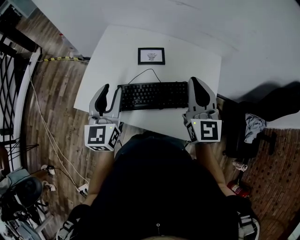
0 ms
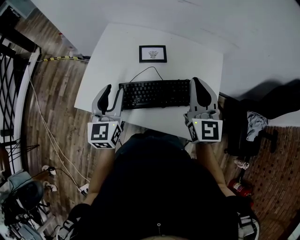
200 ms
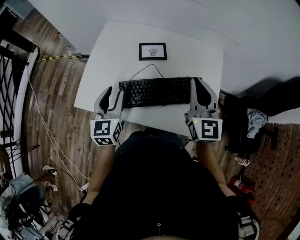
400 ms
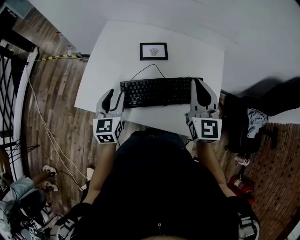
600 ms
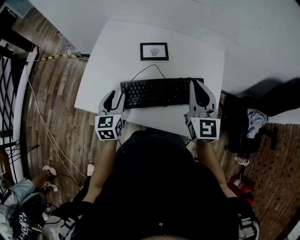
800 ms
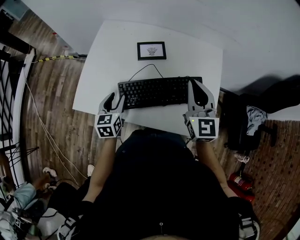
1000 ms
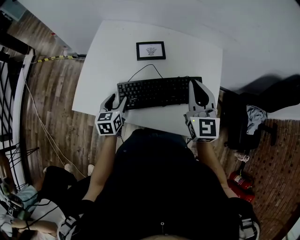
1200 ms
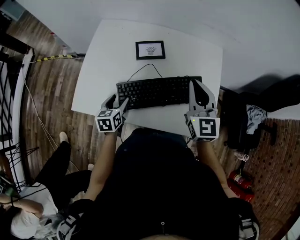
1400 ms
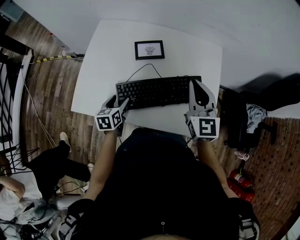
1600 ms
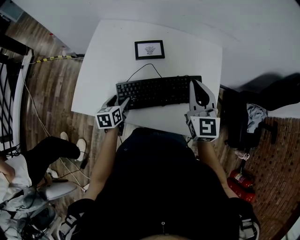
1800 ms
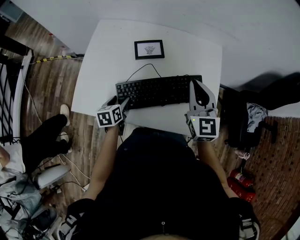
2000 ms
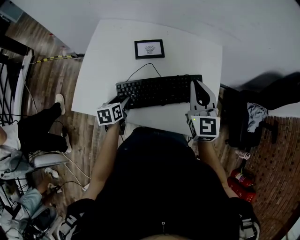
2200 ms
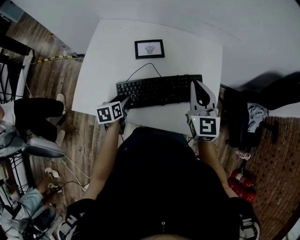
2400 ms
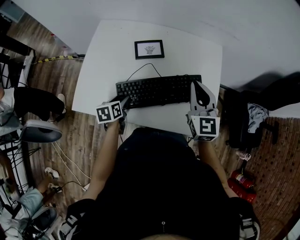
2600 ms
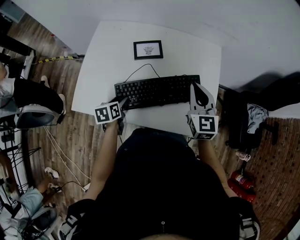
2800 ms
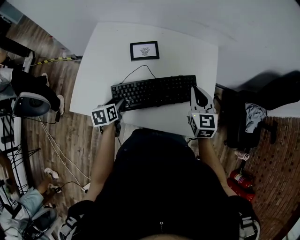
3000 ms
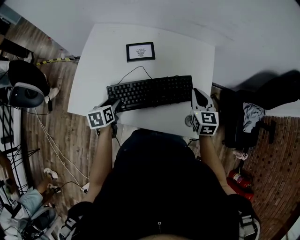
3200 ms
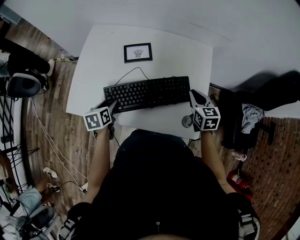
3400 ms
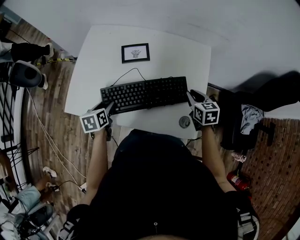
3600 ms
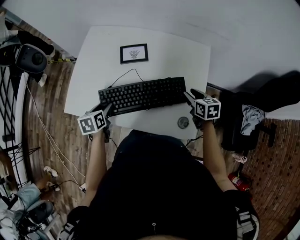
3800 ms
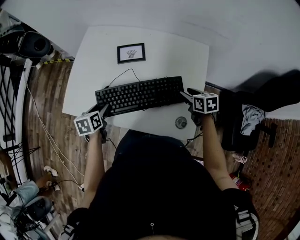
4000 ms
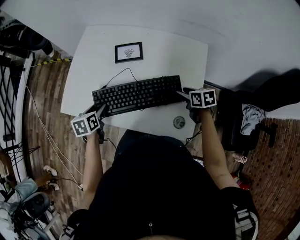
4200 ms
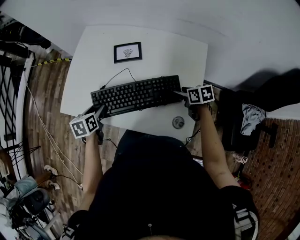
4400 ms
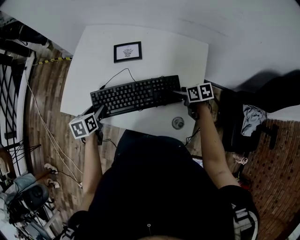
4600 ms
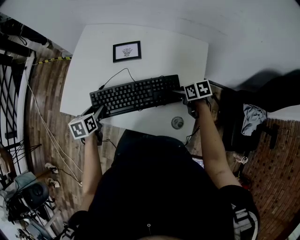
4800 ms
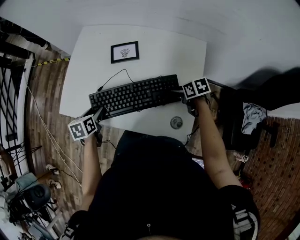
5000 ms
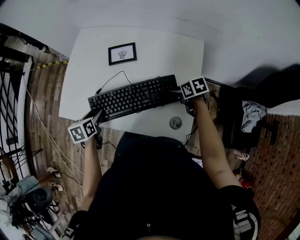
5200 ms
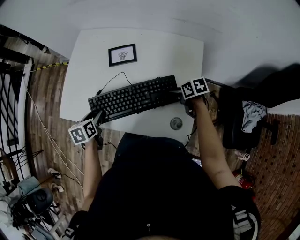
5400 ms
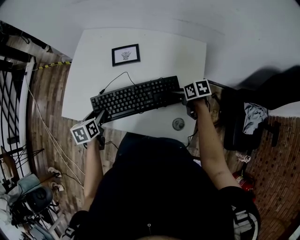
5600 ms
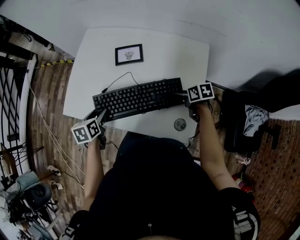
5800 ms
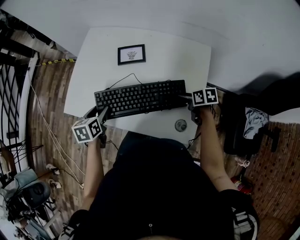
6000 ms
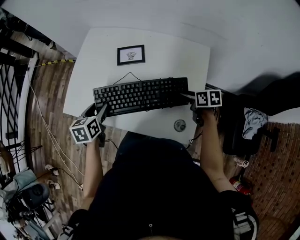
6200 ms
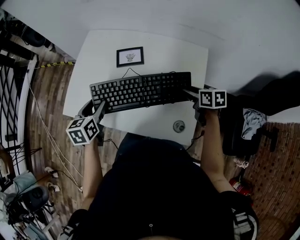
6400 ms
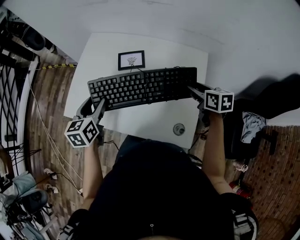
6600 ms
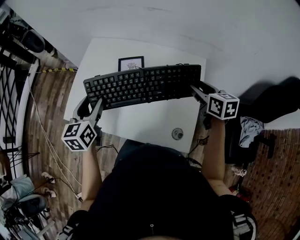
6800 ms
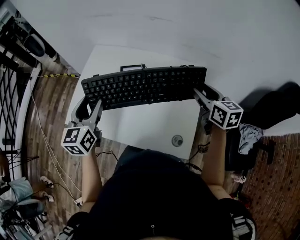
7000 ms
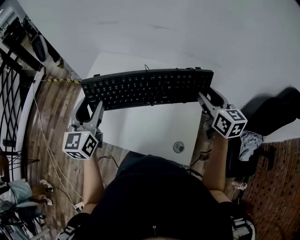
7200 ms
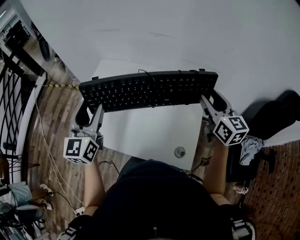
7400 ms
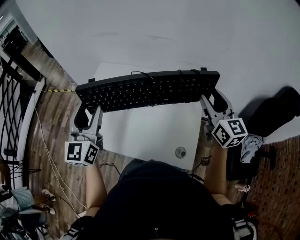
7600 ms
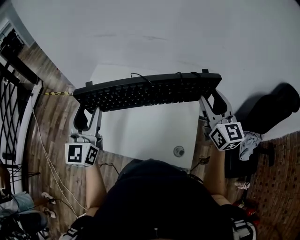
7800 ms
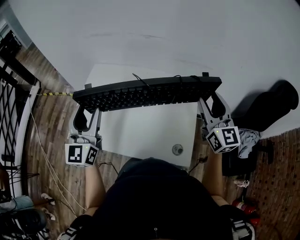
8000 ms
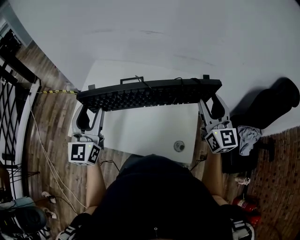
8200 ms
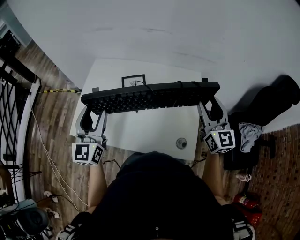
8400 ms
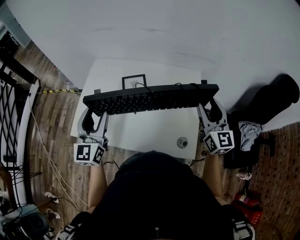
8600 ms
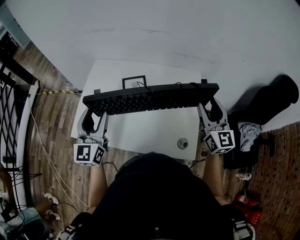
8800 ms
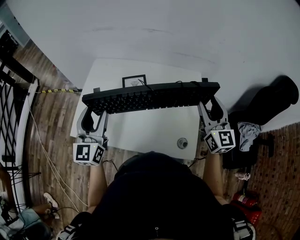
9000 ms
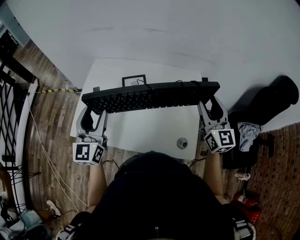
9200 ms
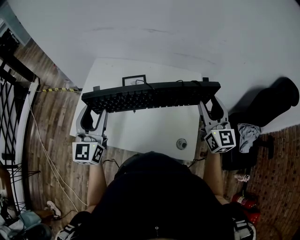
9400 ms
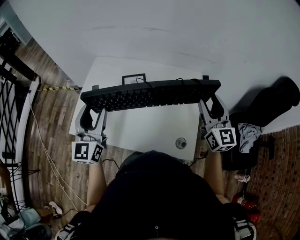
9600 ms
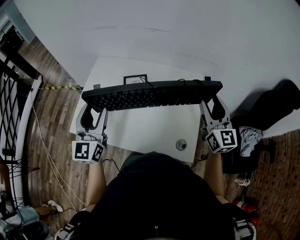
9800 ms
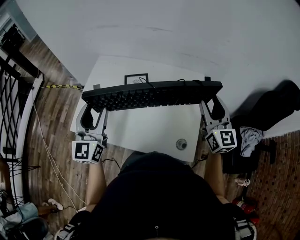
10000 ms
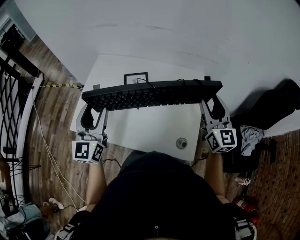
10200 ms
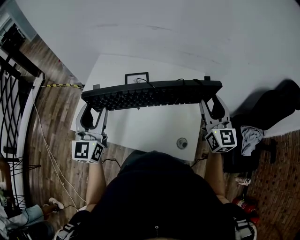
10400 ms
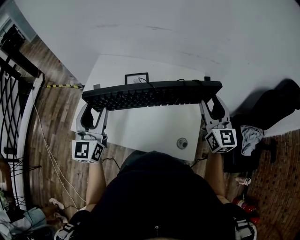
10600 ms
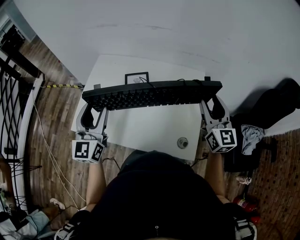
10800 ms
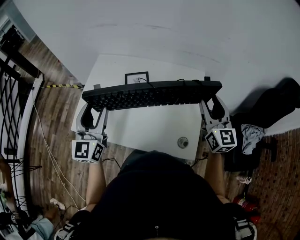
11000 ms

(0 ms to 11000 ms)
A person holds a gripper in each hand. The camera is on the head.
0 ms - 1600 ms: The left gripper travels downward by about 25 cm, points its fingers roughly 30 degrees further downward, and opens up. The right gripper is displaced downward by roughly 5 cm.
1600 ms - 3200 ms: The right gripper moves to the right and downward, about 15 cm.
3200 ms - 4800 ms: The right gripper heads downward, covering approximately 15 cm, turns by about 50 degrees, and opens up.
4800 ms - 6200 ms: The left gripper heads upward, covering roughly 5 cm.
6200 ms - 7800 ms: Both grippers move upward, roughly 30 cm. The left gripper points its fingers approximately 50 degrees further upward. The right gripper tilts its fingers about 50 degrees upward.
7800 ms - 9400 ms: Both grippers move downward, about 5 cm.
9400 ms - 11000 ms: The two grippers keep their place.

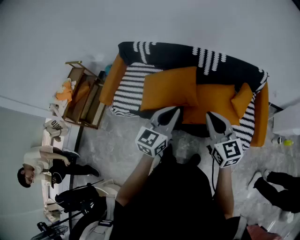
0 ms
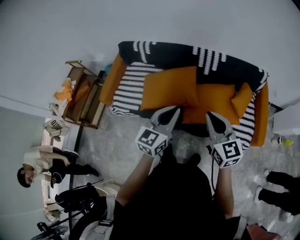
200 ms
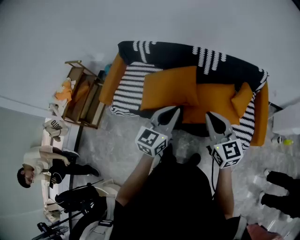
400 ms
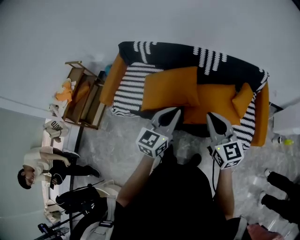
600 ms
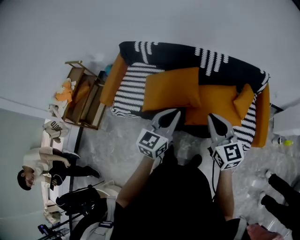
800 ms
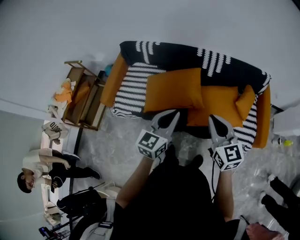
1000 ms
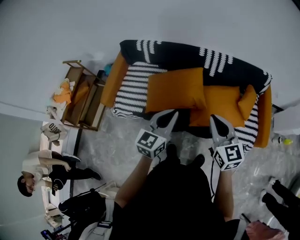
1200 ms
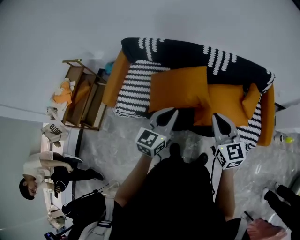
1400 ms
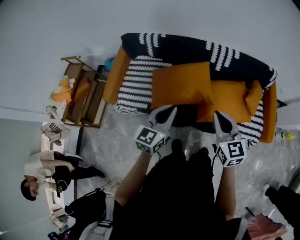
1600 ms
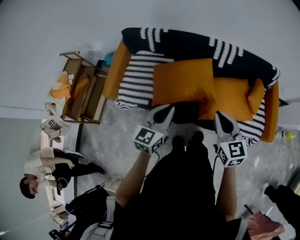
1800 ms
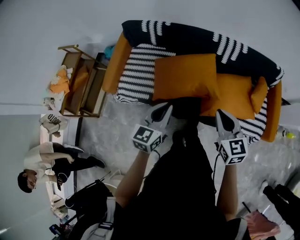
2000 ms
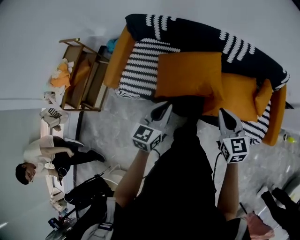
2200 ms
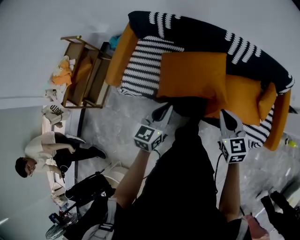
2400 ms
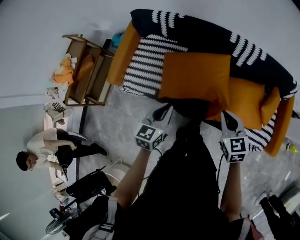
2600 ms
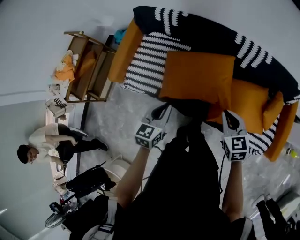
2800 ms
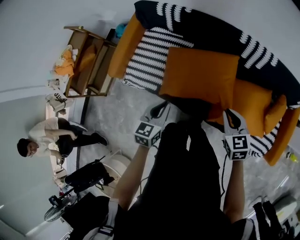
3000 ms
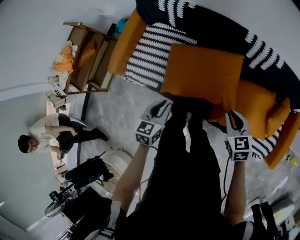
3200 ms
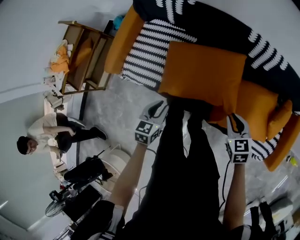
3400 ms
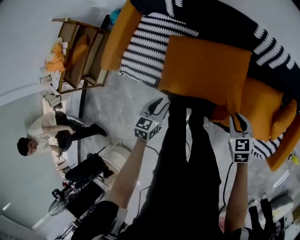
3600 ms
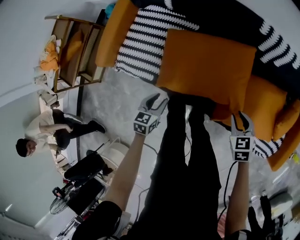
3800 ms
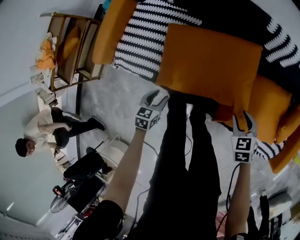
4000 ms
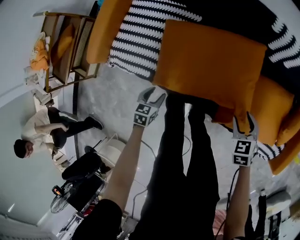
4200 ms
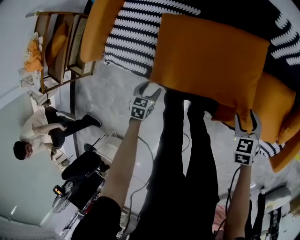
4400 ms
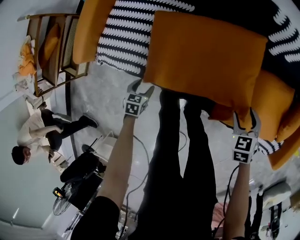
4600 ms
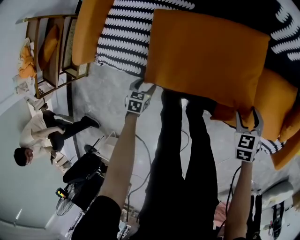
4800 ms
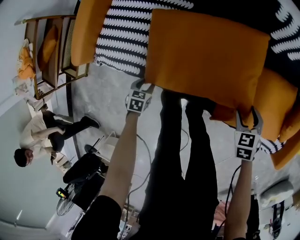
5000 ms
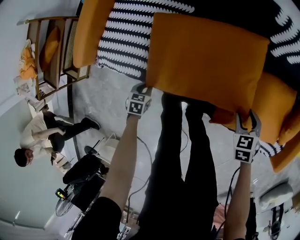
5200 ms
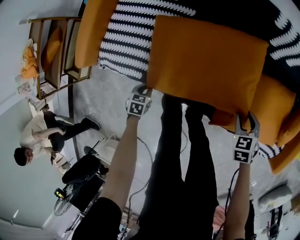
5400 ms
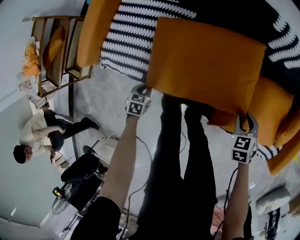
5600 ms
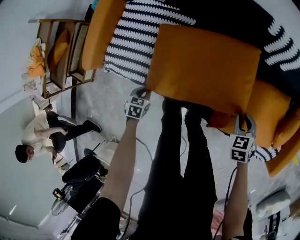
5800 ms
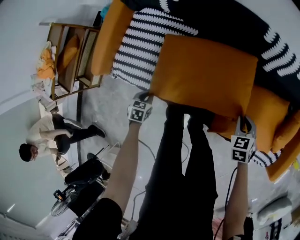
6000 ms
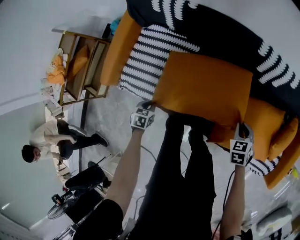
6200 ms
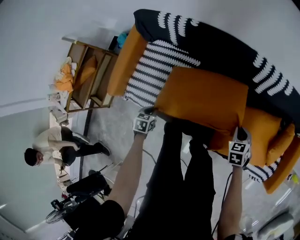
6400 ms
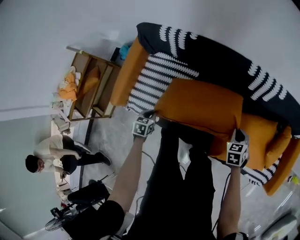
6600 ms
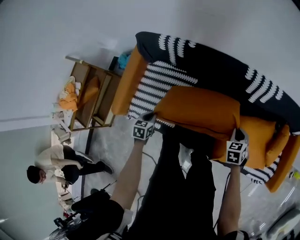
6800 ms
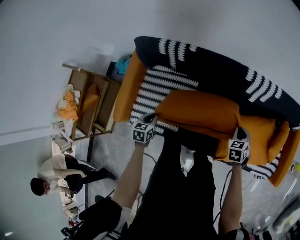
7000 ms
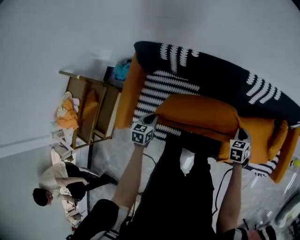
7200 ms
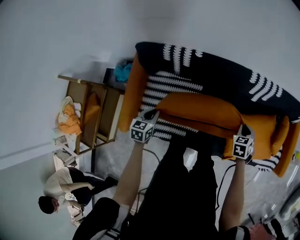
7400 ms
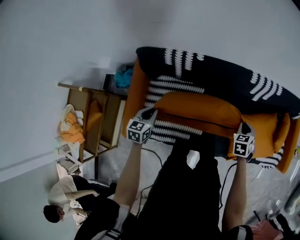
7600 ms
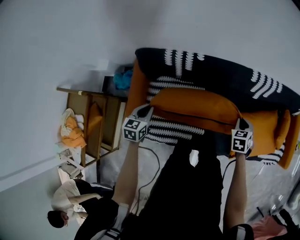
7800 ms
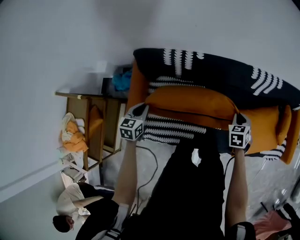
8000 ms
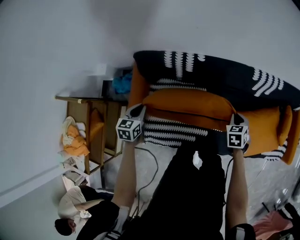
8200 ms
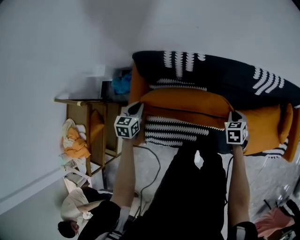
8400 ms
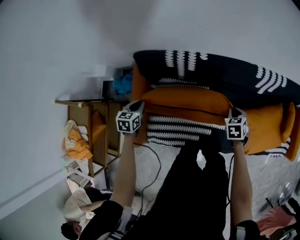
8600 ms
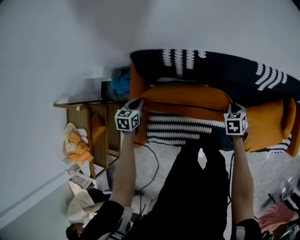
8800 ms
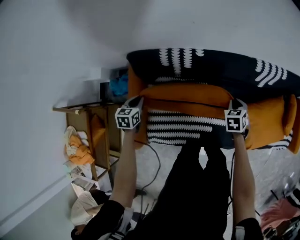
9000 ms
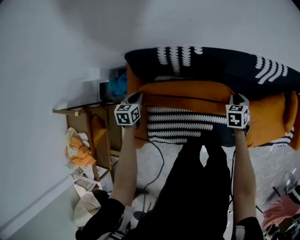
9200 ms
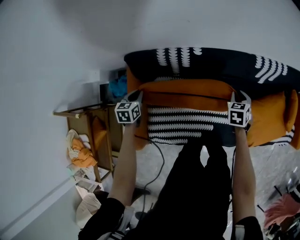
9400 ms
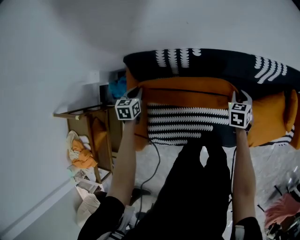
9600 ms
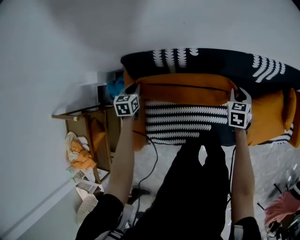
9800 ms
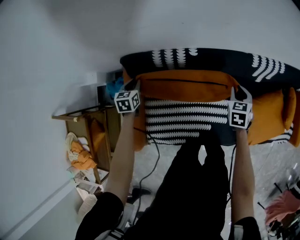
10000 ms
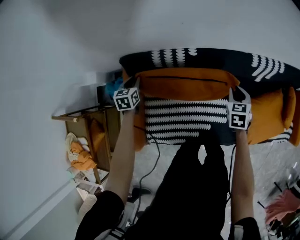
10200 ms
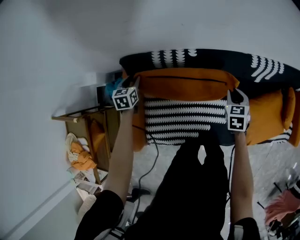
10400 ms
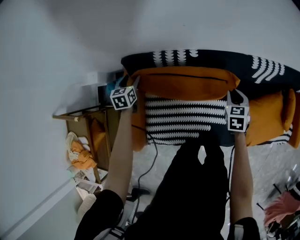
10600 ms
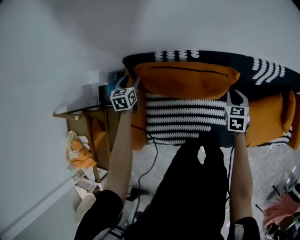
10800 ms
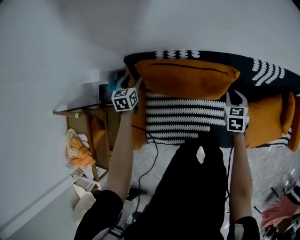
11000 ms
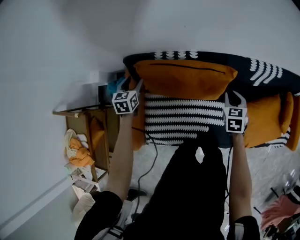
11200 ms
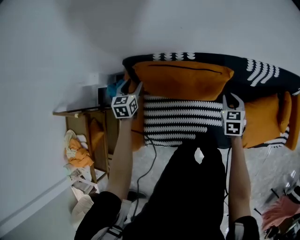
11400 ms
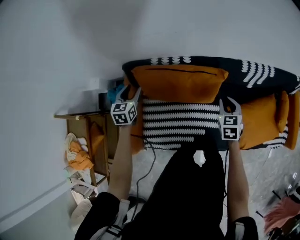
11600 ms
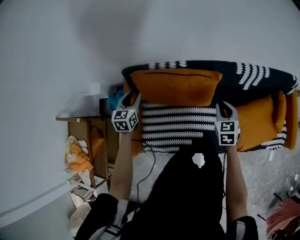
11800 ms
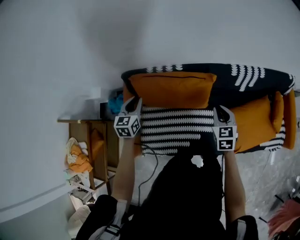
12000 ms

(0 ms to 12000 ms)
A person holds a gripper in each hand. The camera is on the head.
0 ms - 1600 ms: The grippers both shift to the left by approximately 15 cm.
1600 ms - 3000 ms: The two grippers go about 20 cm downward and forward. The right gripper changes its angle by approximately 30 degrees, while the left gripper changes its angle by roughly 30 degrees.
3000 ms - 4400 ms: Both grippers move downward, some 30 cm. The right gripper swivels approximately 30 degrees, and opens. Meanwhile the left gripper turns by some 30 degrees, and opens.
4400 ms - 6000 ms: The right gripper closes, while the left gripper ends up some 5 cm from where it was, and closes.
6000 ms - 7600 ms: The left gripper shifts by approximately 40 cm, and changes its angle by approximately 30 degrees, while the right gripper moves roughly 25 cm, and changes its angle by roughly 30 degrees.
7600 ms - 9000 ms: The left gripper goes about 20 cm to the left, forward and downward; the right gripper heads to the left, downward and forward, covering roughly 15 cm.
9000 ms - 10400 ms: The left gripper goes approximately 15 cm forward, and opens; the right gripper shifts some 5 cm forward and upward.
10400 ms - 12000 ms: The left gripper heads upward, to the right and backward, covering roughly 20 cm, and opens, then closes again, while the right gripper moves upward and backward, approximately 15 cm.
